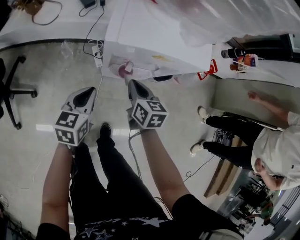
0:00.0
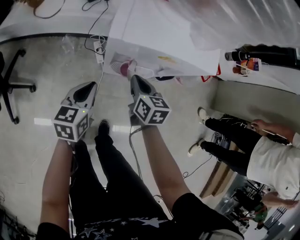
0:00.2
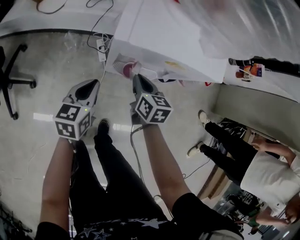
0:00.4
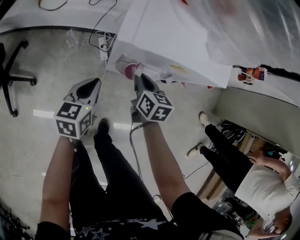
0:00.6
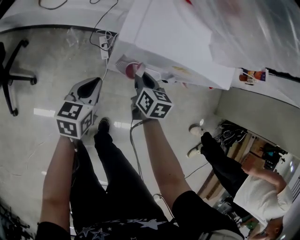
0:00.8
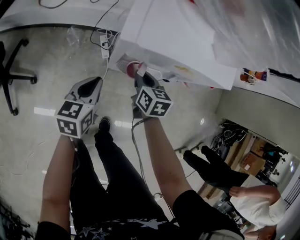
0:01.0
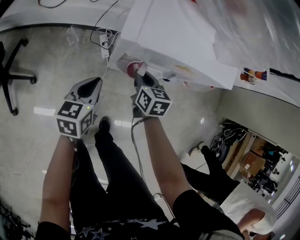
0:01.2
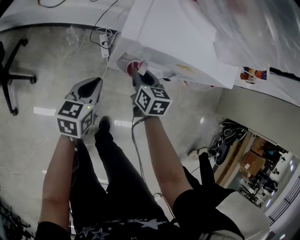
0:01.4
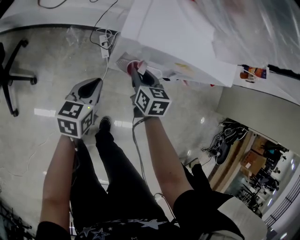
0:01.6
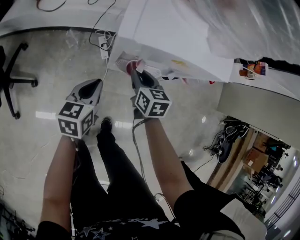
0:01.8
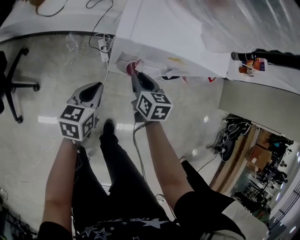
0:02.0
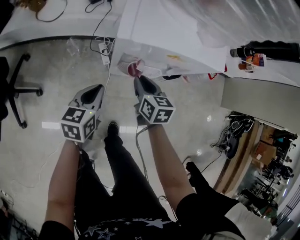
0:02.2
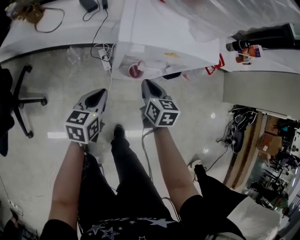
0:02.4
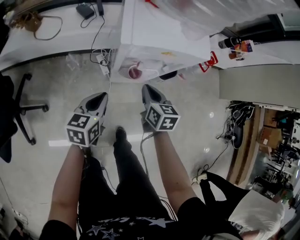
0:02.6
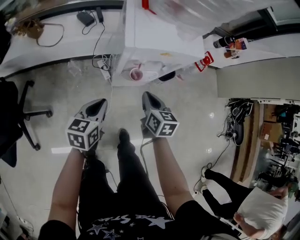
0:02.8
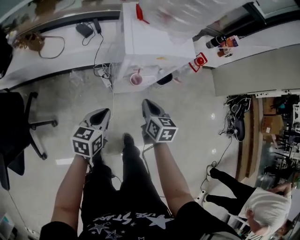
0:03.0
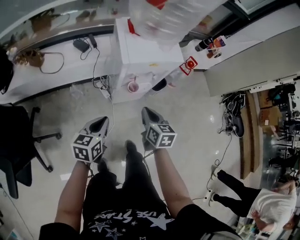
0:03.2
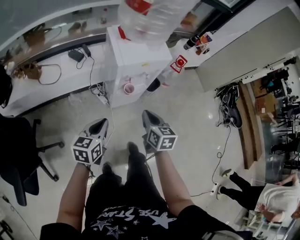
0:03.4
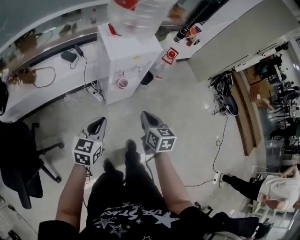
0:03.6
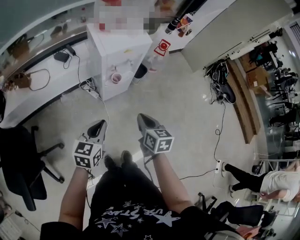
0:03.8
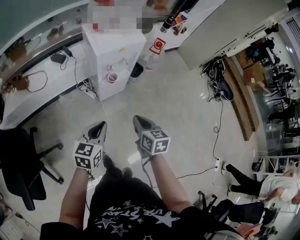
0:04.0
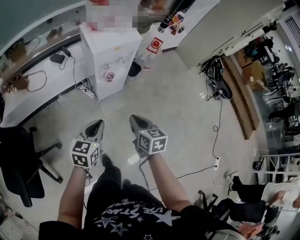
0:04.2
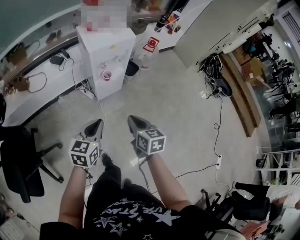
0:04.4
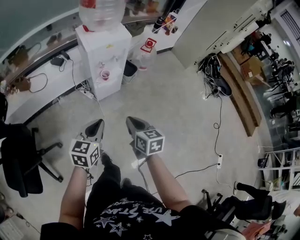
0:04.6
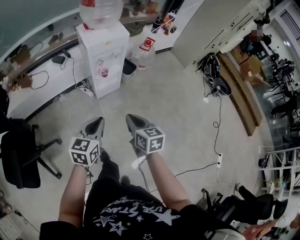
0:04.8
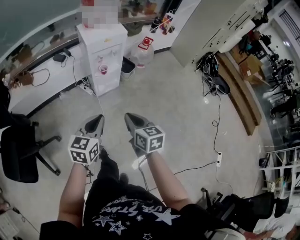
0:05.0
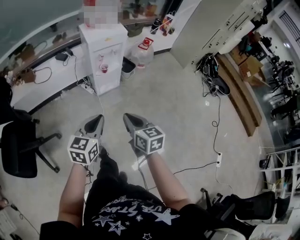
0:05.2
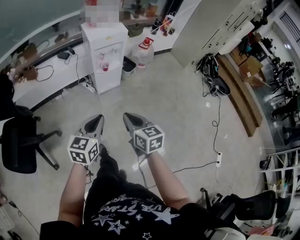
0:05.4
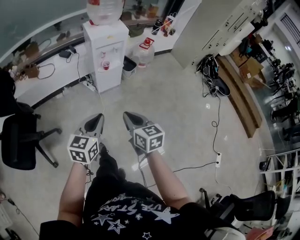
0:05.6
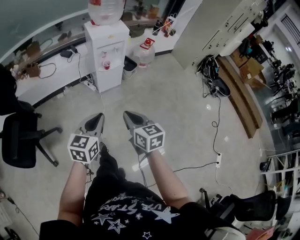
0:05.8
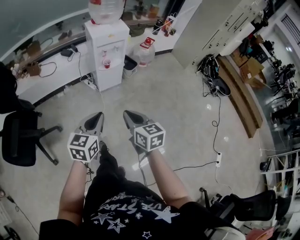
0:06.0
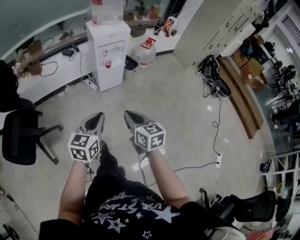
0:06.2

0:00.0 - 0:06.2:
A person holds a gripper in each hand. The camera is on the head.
0:00.0 - 0:01.6: The left gripper goes roughly 5 cm downward. The right gripper heads downward and forward, covering about 10 cm, and opens up.
0:01.6 - 0:03.2: The two grippers go roughly 25 cm upward and backward. The left gripper swivels roughly 20 degrees; the right gripper turns by roughly 20 degrees, and closes up.
0:03.2 - 0:04.6: The right gripper moves backward, about 25 cm. The left gripper shifts approximately 25 cm backward, upward and to the right, and turns by roughly 20 degrees.
0:04.6 - 0:06.2: Both grippers travel together backward, approximately 20 cm.

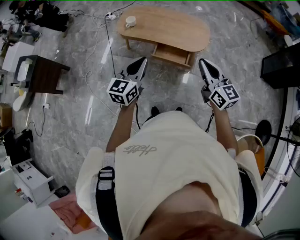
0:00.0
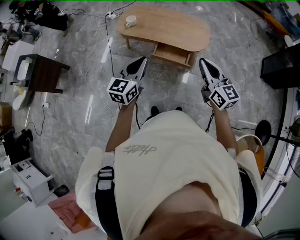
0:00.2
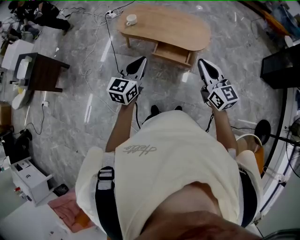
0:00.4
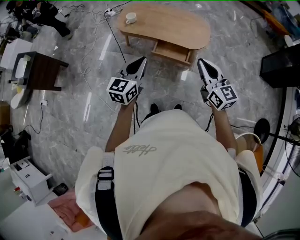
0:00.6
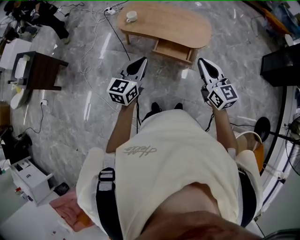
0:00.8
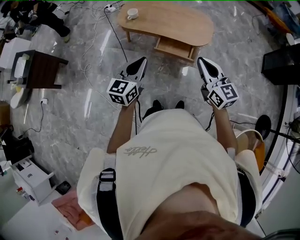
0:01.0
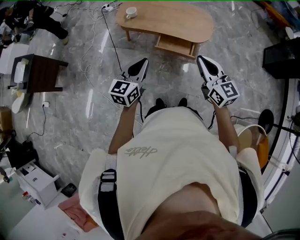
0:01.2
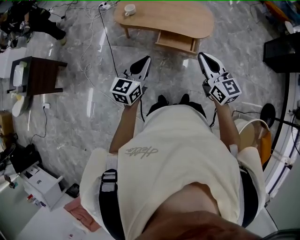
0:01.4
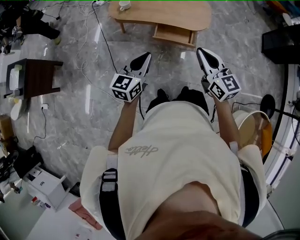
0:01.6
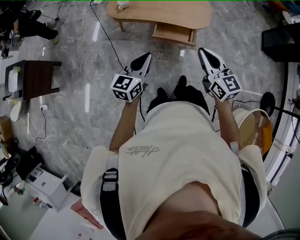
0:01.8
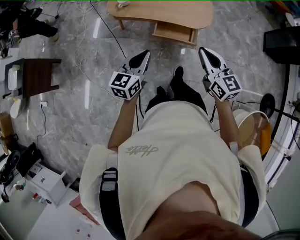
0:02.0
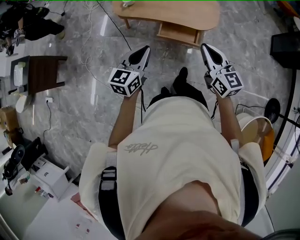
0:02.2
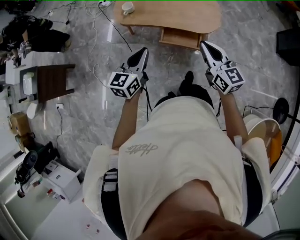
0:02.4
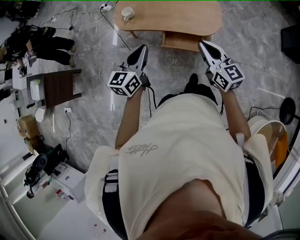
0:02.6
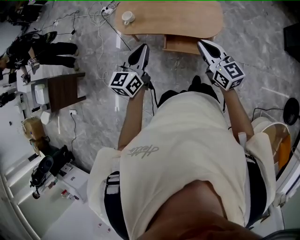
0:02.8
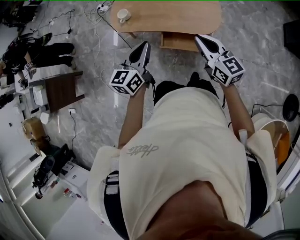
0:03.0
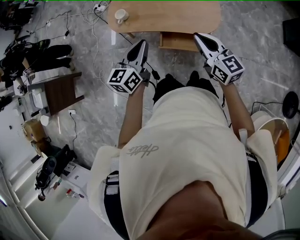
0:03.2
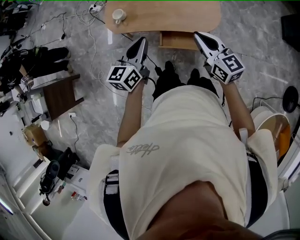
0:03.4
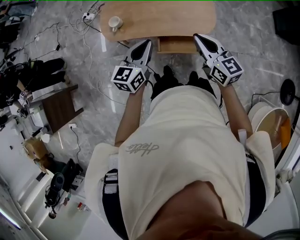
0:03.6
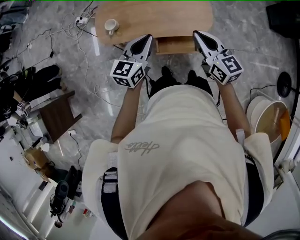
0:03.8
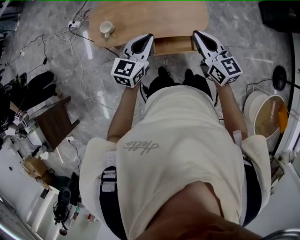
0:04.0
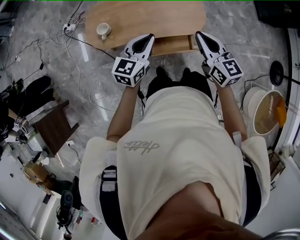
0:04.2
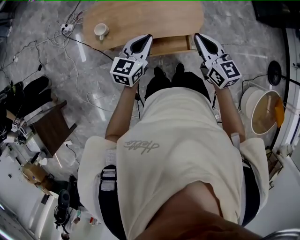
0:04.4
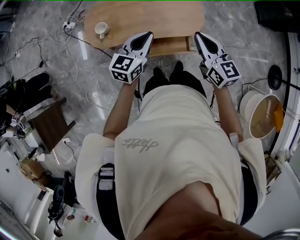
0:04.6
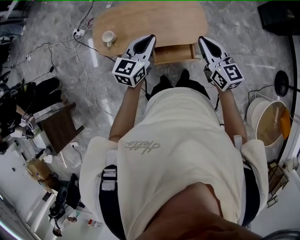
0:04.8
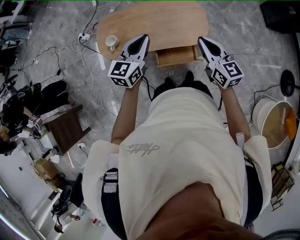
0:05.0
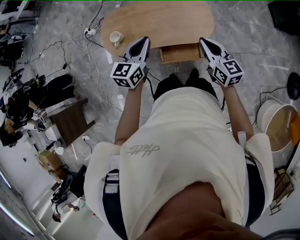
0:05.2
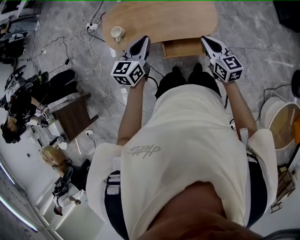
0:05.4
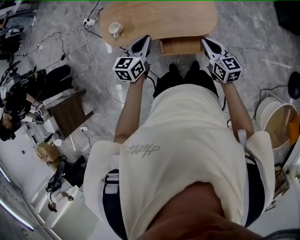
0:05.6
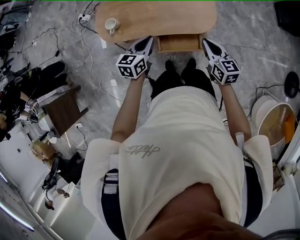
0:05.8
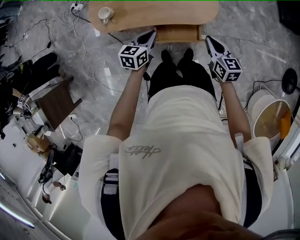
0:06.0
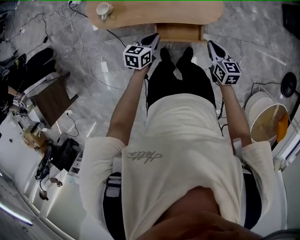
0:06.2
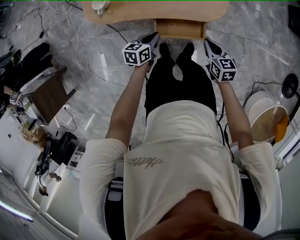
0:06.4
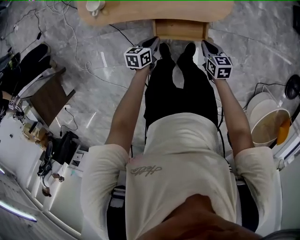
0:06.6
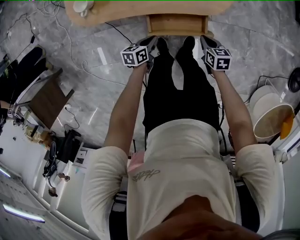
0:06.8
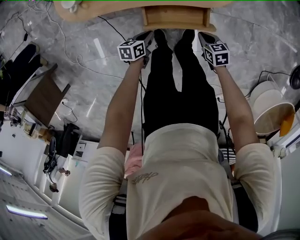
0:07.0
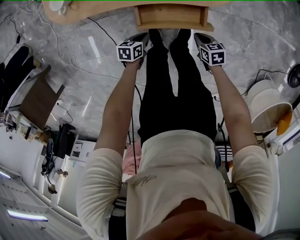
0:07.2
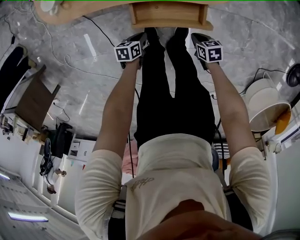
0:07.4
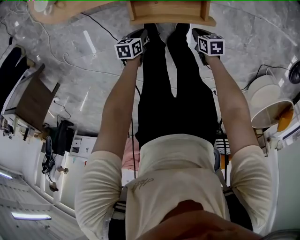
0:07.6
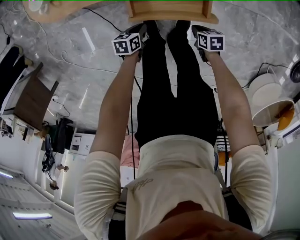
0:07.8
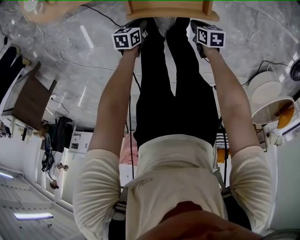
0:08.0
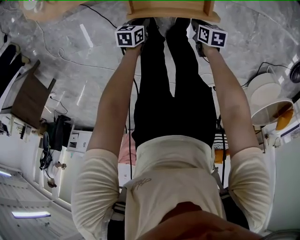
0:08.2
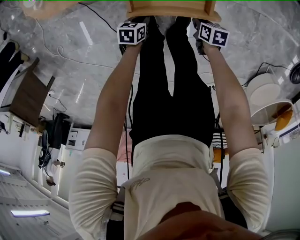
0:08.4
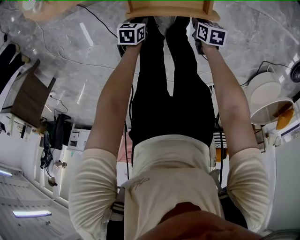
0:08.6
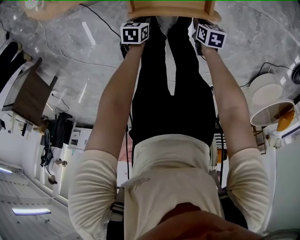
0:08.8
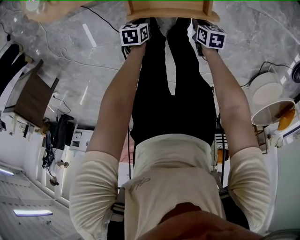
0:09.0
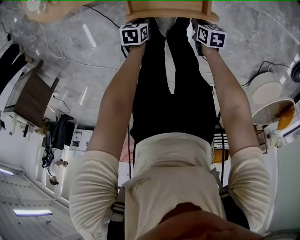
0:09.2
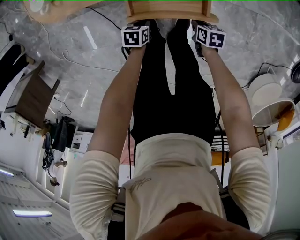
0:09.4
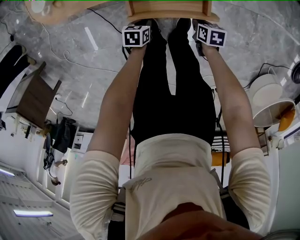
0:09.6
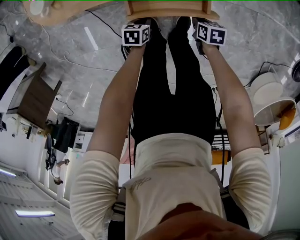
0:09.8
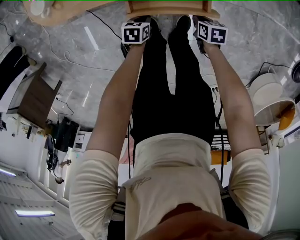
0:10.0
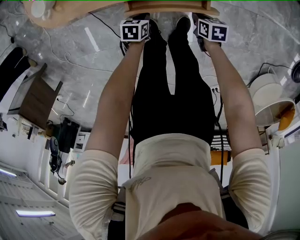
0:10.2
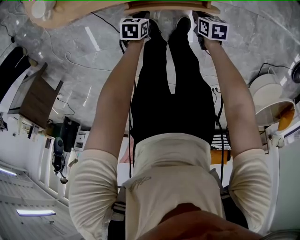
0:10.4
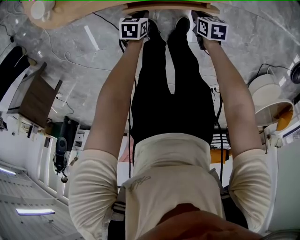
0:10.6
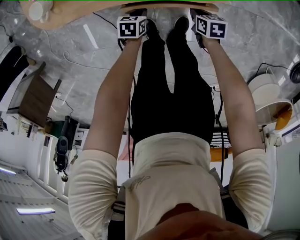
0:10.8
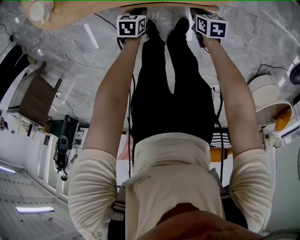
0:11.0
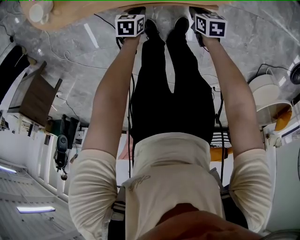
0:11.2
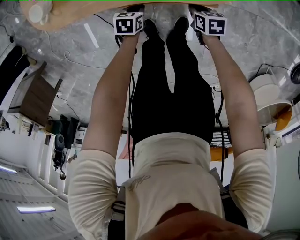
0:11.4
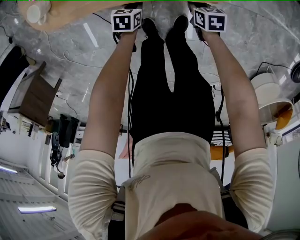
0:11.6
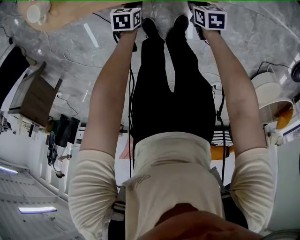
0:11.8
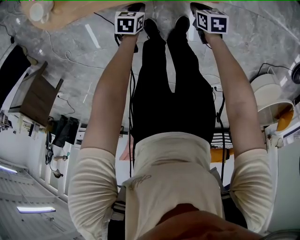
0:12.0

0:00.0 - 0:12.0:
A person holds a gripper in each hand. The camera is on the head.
0:00.0 - 0:01.6: The left gripper travels to the left and downward by roughly 10 cm; the right gripper is displaced to the left by roughly 10 cm.
0:01.6 - 0:03.0: The grippers both shift forward and to the right by some 30 cm.
0:03.0 - 0:04.4: The grippers both shift forward and to the left by about 15 cm. The left gripper changes its angle by some 30 degrees; the right gripper swivels some 20 degrees.
0:04.4 - 0:06.0: The left gripper moves downward, about 15 cm, and rotates roughly 20 degrees; the right gripper moves downward and to the right, about 20 cm.
0:06.0 - 0:07.6: Both grippers travel together downward, some 50 cm. The right gripper tips its fingers downward by roughly 30 degrees. Meanwhile the left gripper changes its angle by about 40 degrees.
0:07.6 - 0:09.0: There are only small adjustments of the grippers.
0:09.0 - 0:10.4: The left gripper moves roughly 10 cm. The right gripper changes place by some 10 cm.

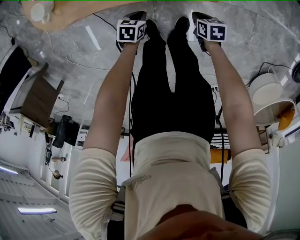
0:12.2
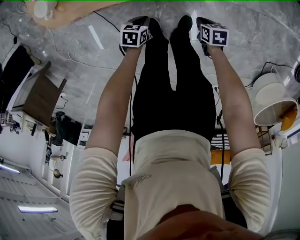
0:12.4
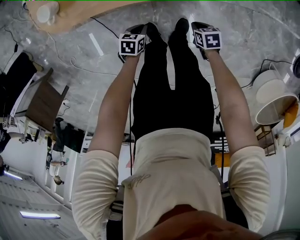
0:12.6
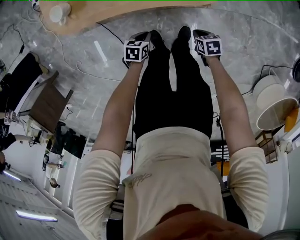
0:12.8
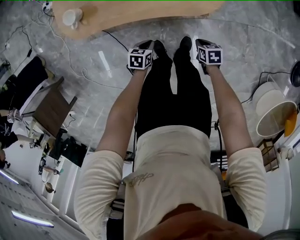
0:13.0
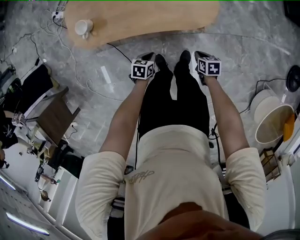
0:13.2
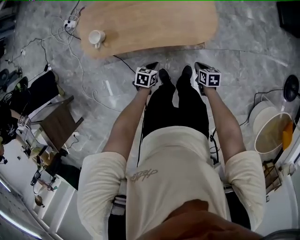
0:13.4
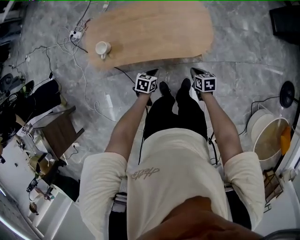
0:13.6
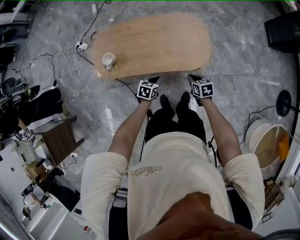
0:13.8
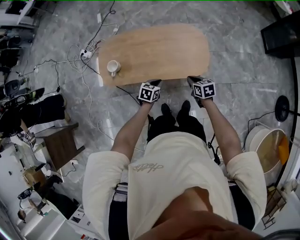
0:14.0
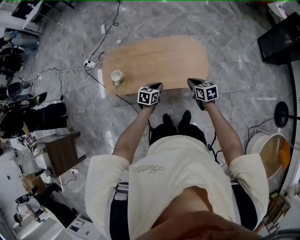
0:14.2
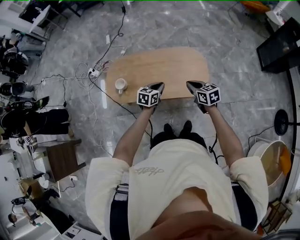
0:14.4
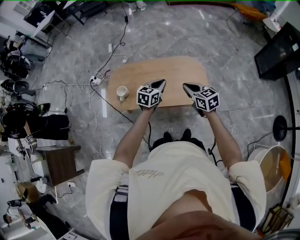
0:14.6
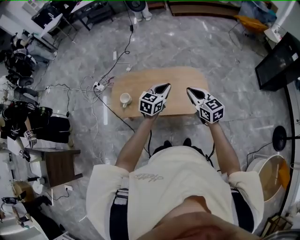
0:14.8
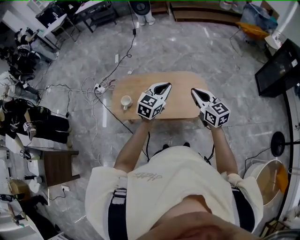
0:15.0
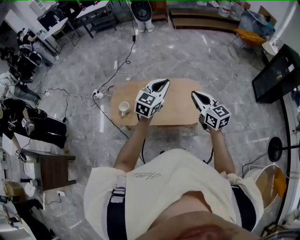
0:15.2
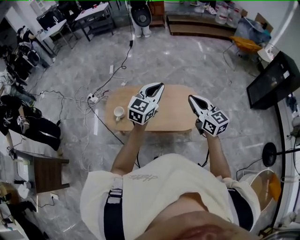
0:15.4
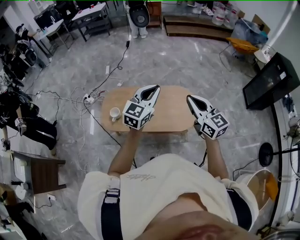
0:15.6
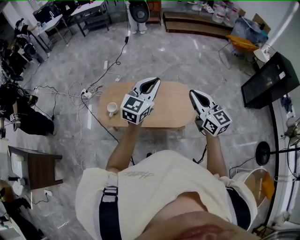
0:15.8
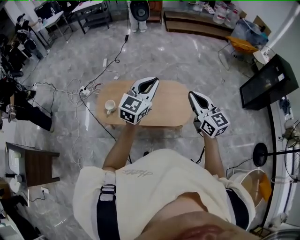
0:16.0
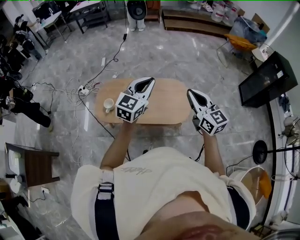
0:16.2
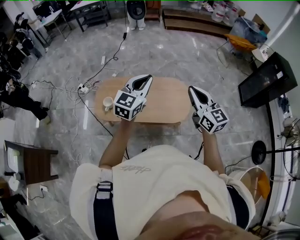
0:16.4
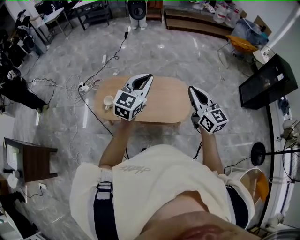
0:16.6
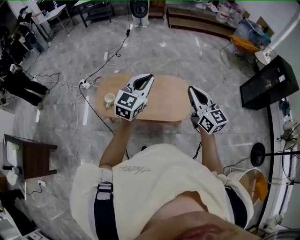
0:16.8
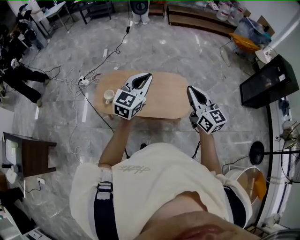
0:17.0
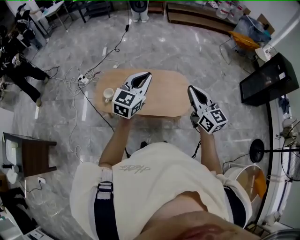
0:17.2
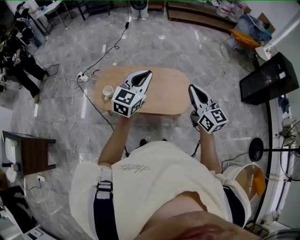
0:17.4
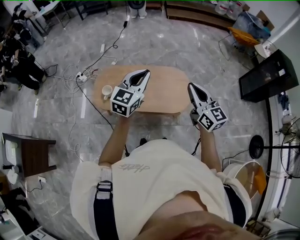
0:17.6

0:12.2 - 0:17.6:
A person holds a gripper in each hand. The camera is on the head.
0:12.2 - 0:13.6: The two grippers go roughly 35 cm upward.
0:13.6 - 0:15.0: The grippers both shift upward by some 50 cm. The left gripper tilts its fingers roughly 40 degrees upward; the right gripper tilts its fingers roughly 40 degrees upward.
0:15.0 - 0:16.2: Both grippers travel together upward, about 10 cm.
0:16.2 - 0:17.6: There are only small adjustments of the grippers.
